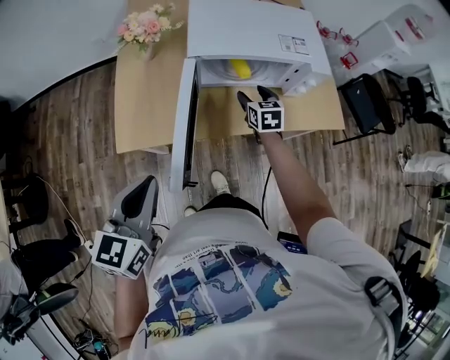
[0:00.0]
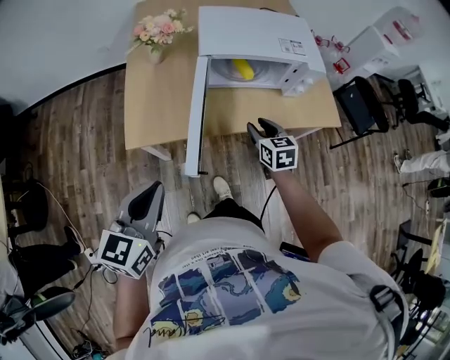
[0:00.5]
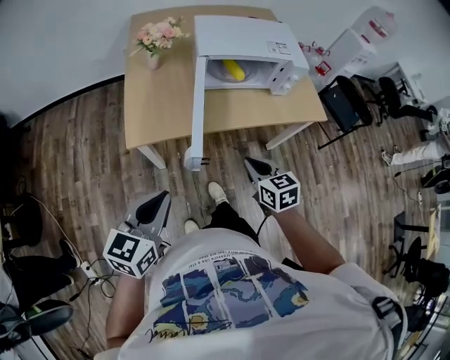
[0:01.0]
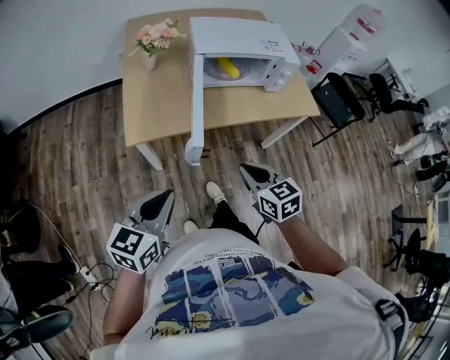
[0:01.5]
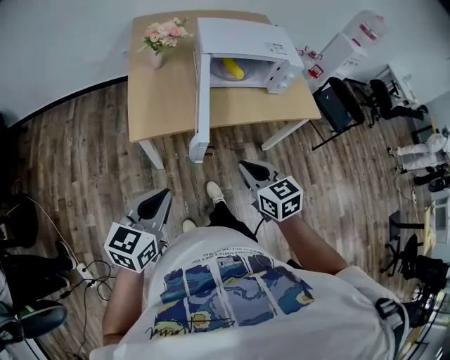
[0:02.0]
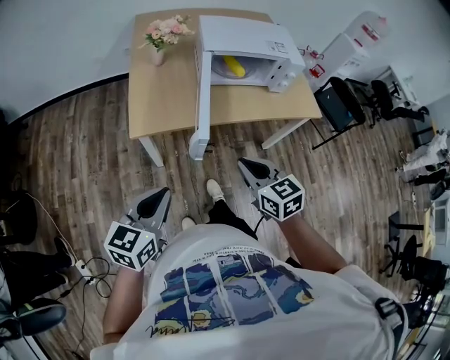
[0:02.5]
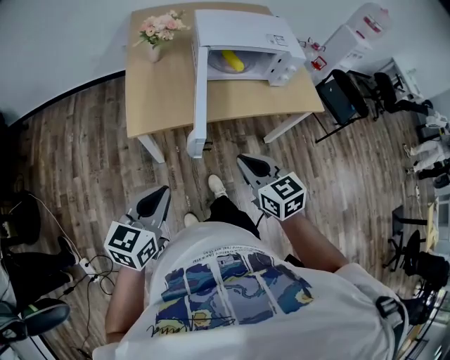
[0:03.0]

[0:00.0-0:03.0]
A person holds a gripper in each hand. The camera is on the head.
0:00.0 to 0:01.5: The right gripper travels backward by roughly 35 cm, and closes up. Meanwhile the left gripper moves backward, roughly 15 cm.
0:01.5 to 0:03.0: The grippers make only small movements.

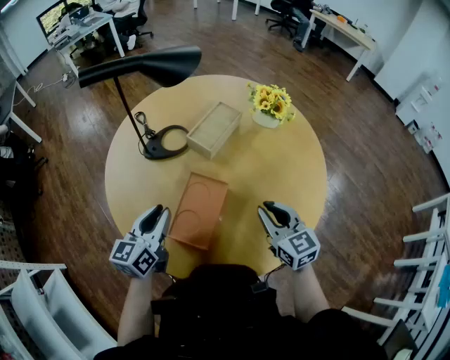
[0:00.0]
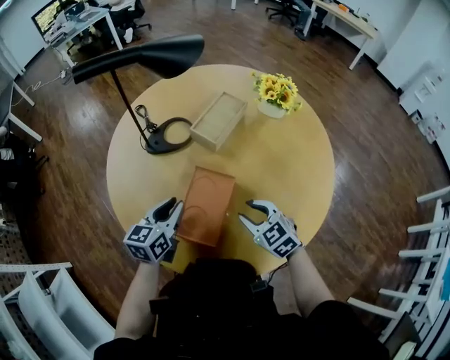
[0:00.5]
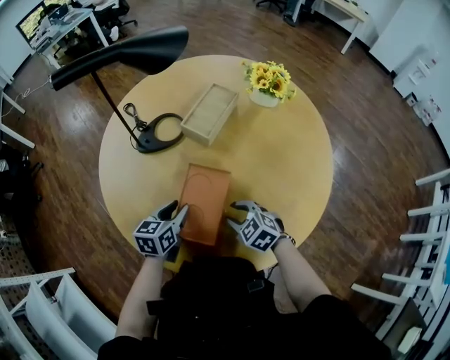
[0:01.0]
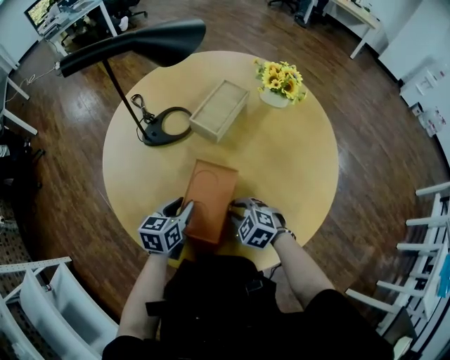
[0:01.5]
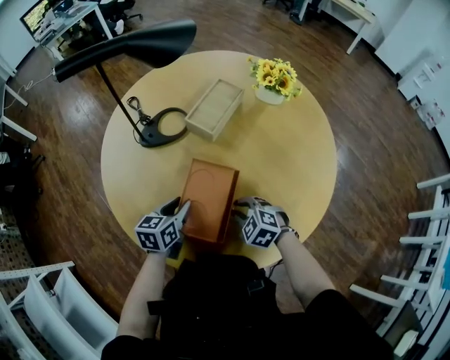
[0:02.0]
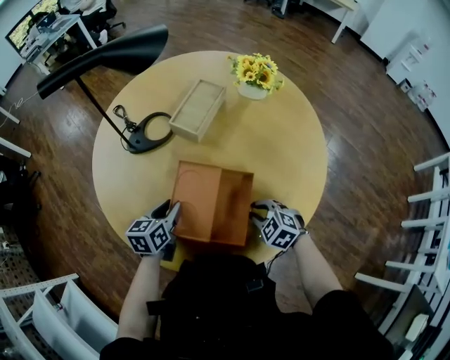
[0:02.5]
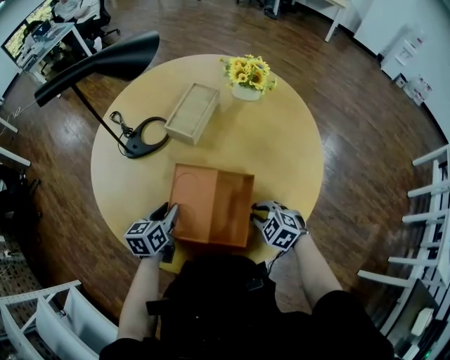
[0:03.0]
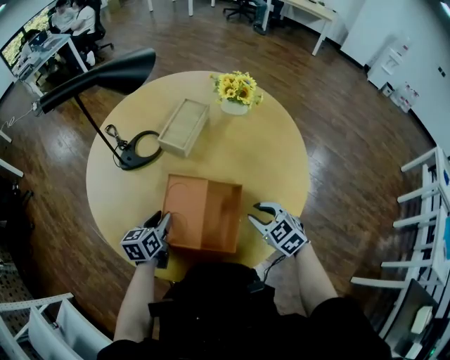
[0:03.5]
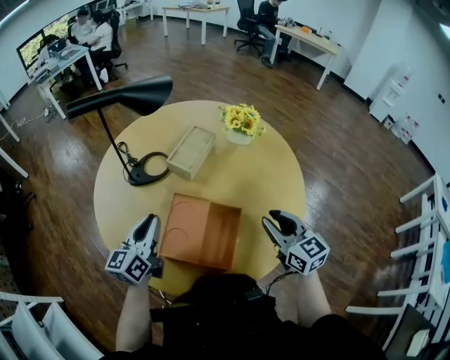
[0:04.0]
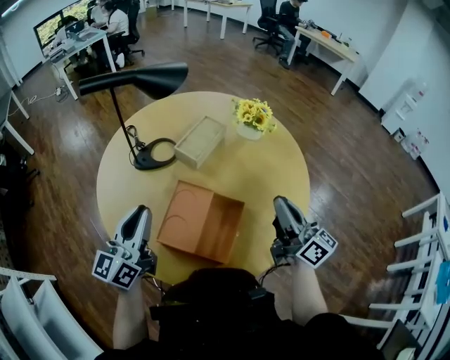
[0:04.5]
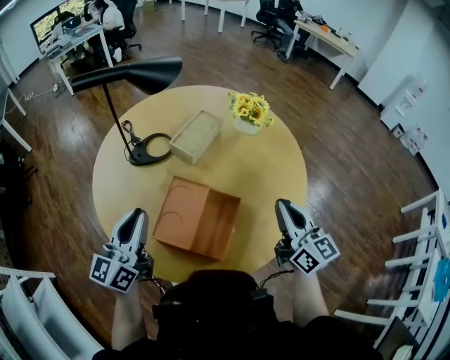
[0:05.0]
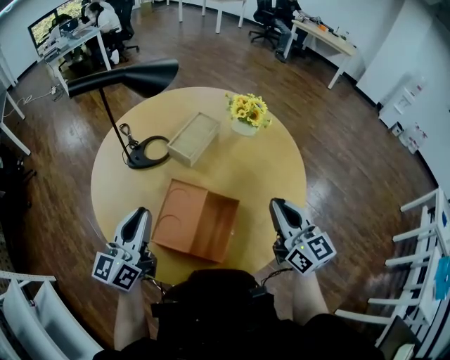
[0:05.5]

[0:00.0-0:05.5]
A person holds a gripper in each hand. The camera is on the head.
0:00.0 to 0:02.0: The left gripper travels downward by about 10 cm, and rotates approximately 20 degrees; the right gripper moves downward and to the left, roughly 20 cm, and tips its fingers downward by approximately 40 degrees.
0:02.0 to 0:03.5: The right gripper heads to the right and upward, covering roughly 15 cm, and swivels about 30 degrees.
0:03.5 to 0:05.5: The two grippers go roughly 20 cm upward. The right gripper tips its fingers upward by roughly 40 degrees, and closes up. The left gripper angles its fingers upward, by about 40 degrees, and closes its fingers.

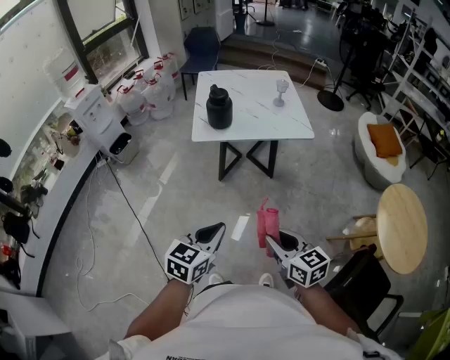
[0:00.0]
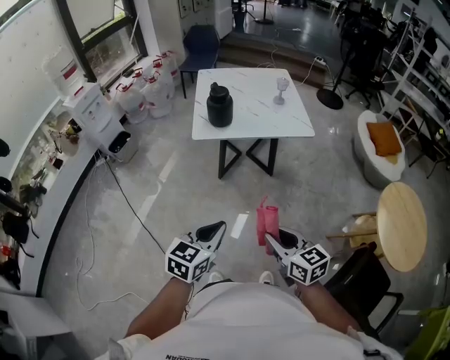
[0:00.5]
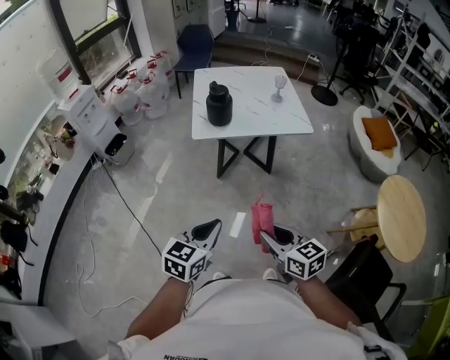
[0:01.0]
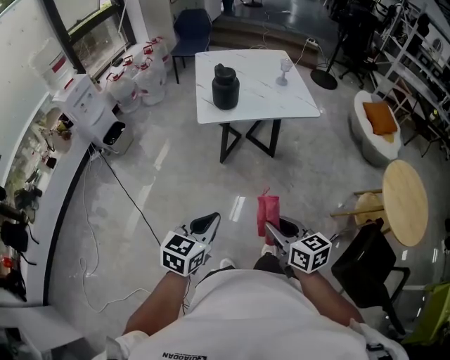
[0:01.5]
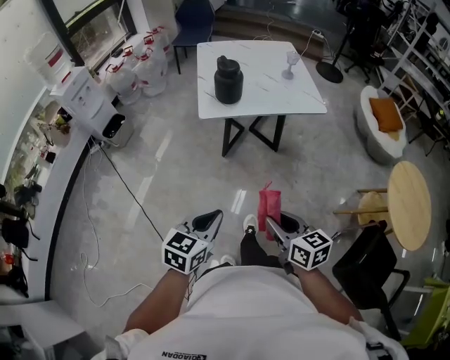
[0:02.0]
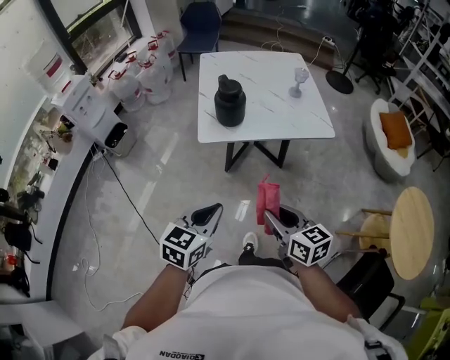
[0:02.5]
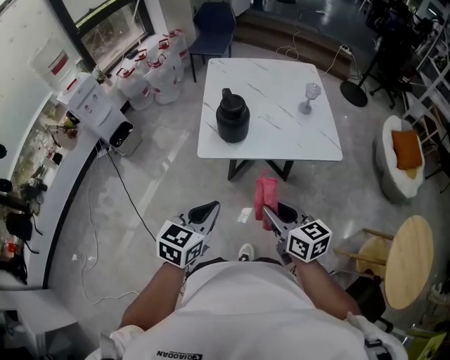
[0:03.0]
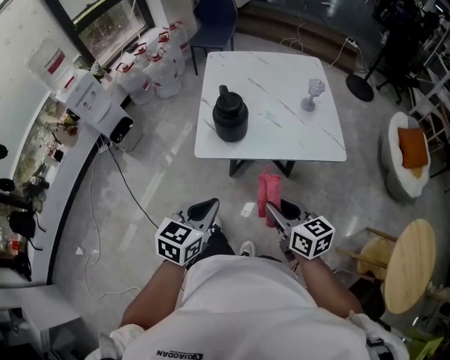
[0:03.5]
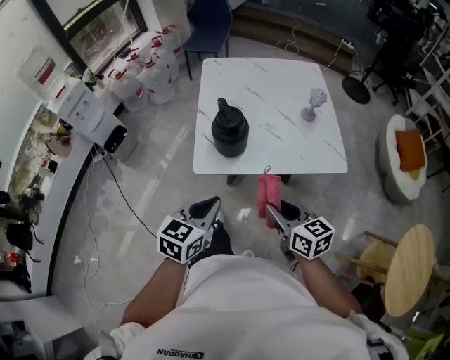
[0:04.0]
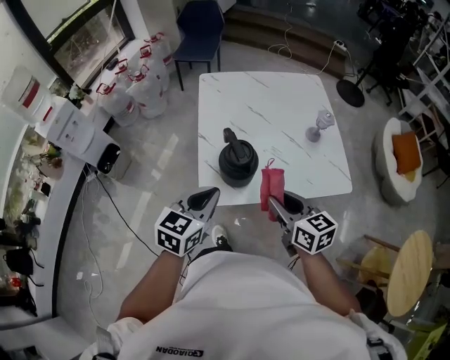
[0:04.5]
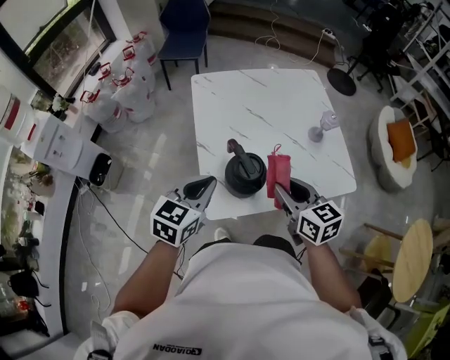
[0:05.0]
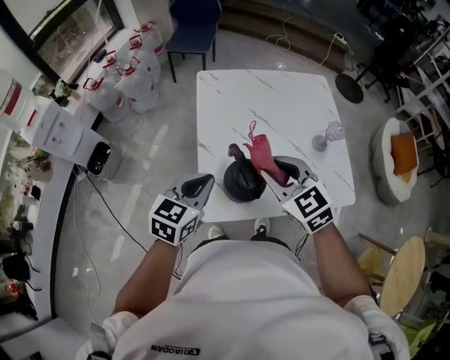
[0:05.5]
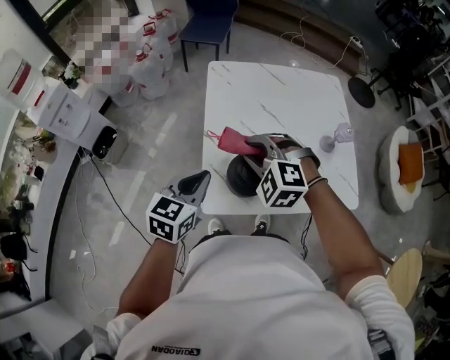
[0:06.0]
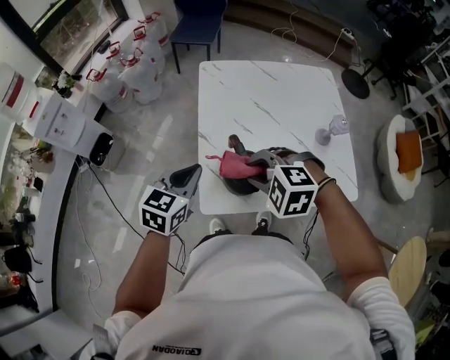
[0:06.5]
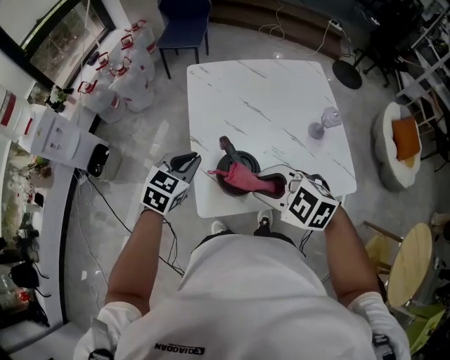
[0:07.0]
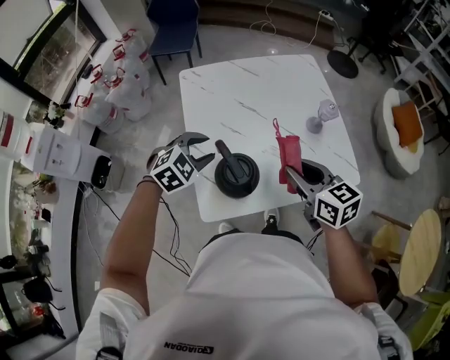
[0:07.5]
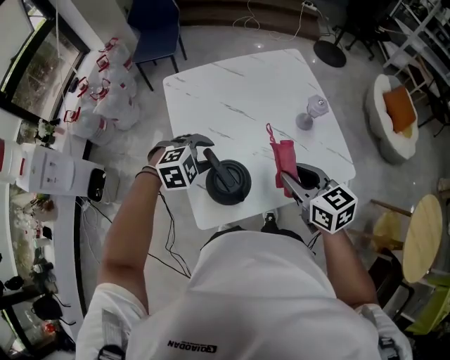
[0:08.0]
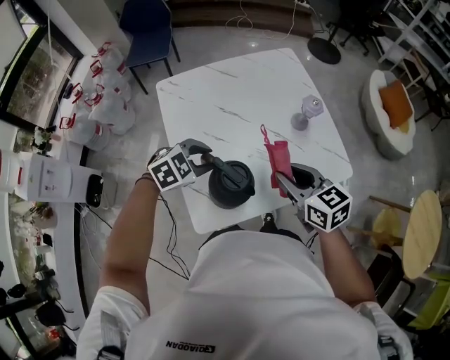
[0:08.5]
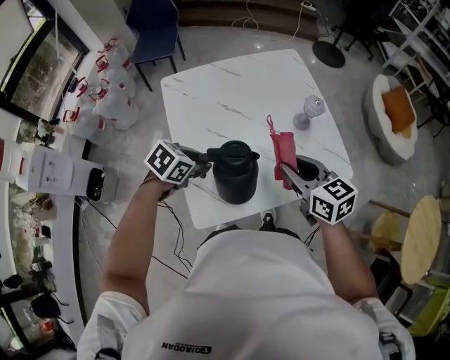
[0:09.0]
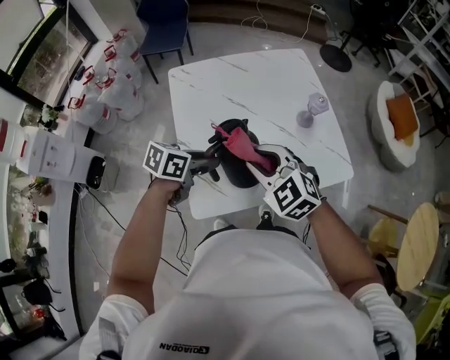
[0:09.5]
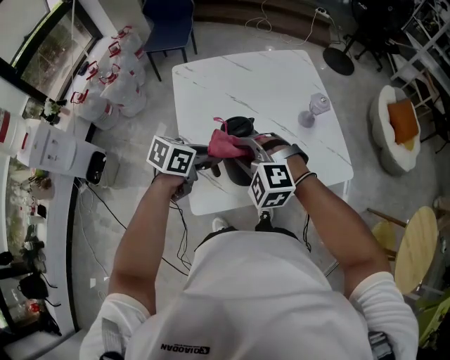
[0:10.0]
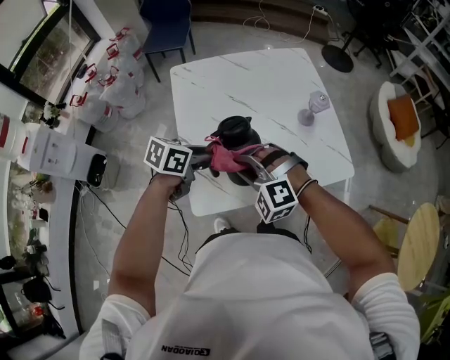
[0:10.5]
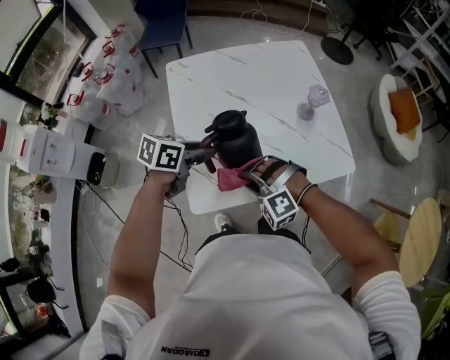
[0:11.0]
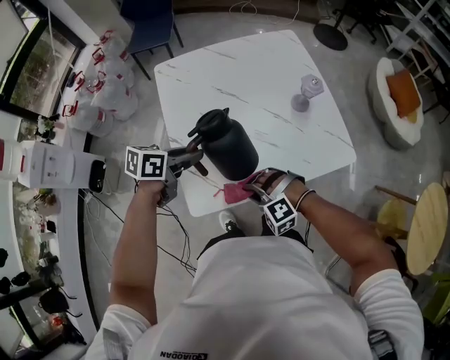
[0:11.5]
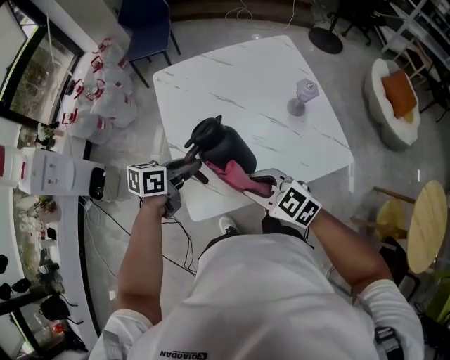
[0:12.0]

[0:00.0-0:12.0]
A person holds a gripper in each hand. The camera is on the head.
0:00.0 to 0:02.0: The two grippers go approximately 10 cm to the left.
0:02.0 to 0:04.0: The grippers both shift forward by some 35 cm.
0:04.0 to 0:06.0: The grippers both shift forward and to the left by some 30 cm. The right gripper rolls counterclockwise, seen from behind, by about 80 degrees.
0:06.0 to 0:08.0: The left gripper moves about 15 cm, rolls clockwise, seen from behind, by approximately 60 degrees, and opens its fingers; the right gripper ends up roughly 20 cm from where it was, and rolls clockwise, seen from behind, by approximately 80 degrees.
0:08.0 to 0:10.0: The left gripper shifts by about 5 cm, and rotates around the line of its fingers by roughly 70 degrees, counterclockwise from behind; the right gripper moves to the left, roughly 15 cm, and twists approximately 70 degrees counterclockwise, seen from behind.
0:10.0 to 0:12.0: The right gripper heads to the right and backward, covering about 10 cm, reaches roughly 15 cm downward, then returns, and rotates around the line of its fingers by about 50 degrees, clockwise from behind.

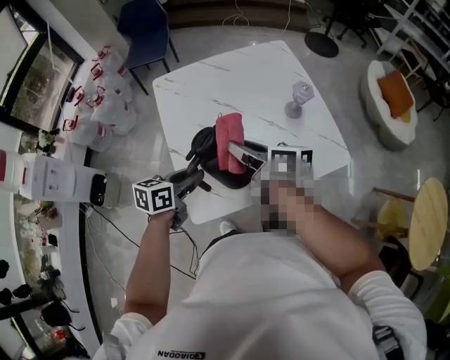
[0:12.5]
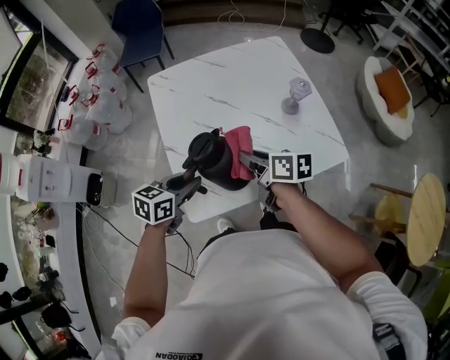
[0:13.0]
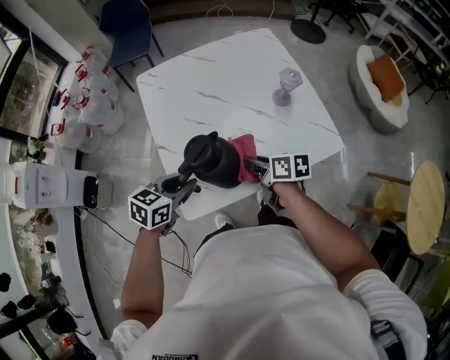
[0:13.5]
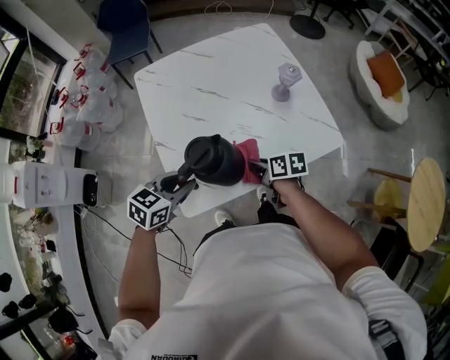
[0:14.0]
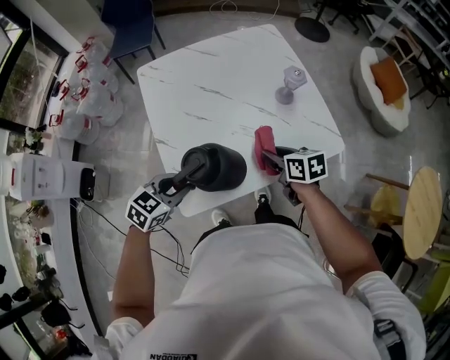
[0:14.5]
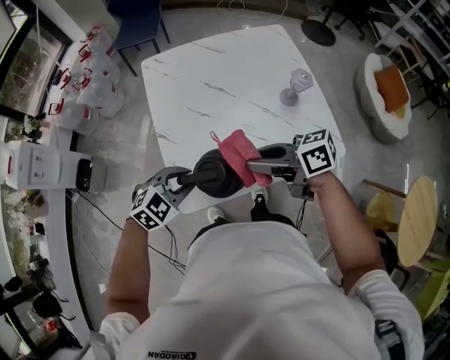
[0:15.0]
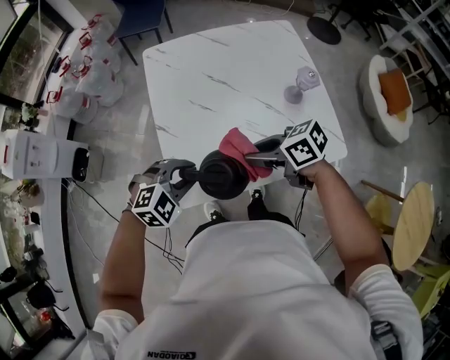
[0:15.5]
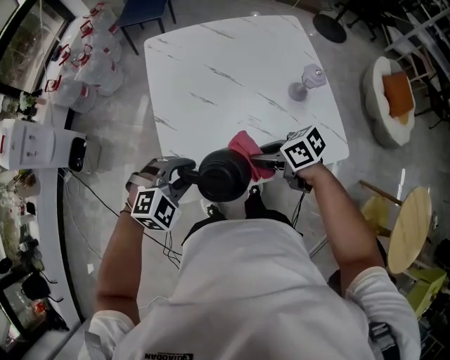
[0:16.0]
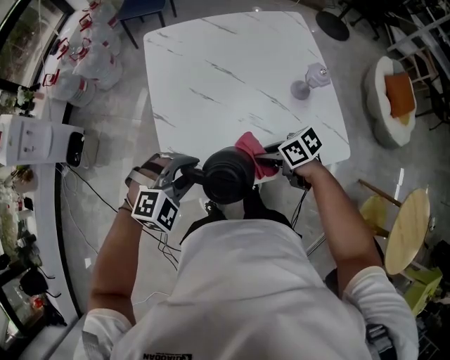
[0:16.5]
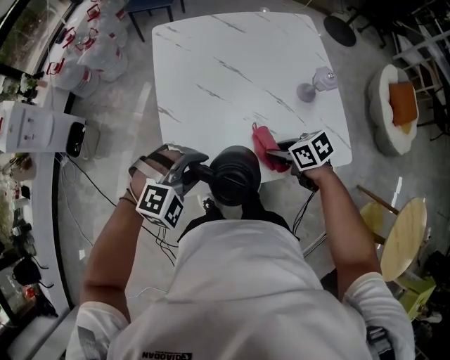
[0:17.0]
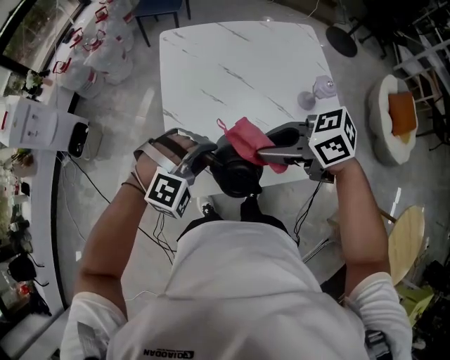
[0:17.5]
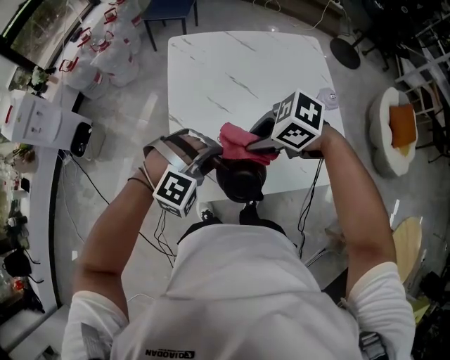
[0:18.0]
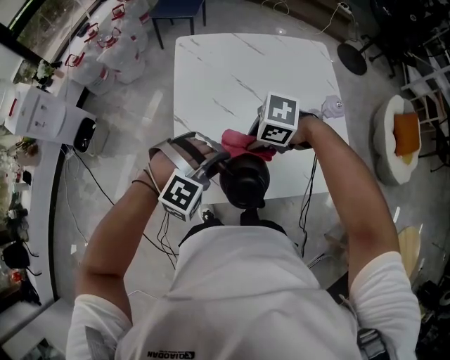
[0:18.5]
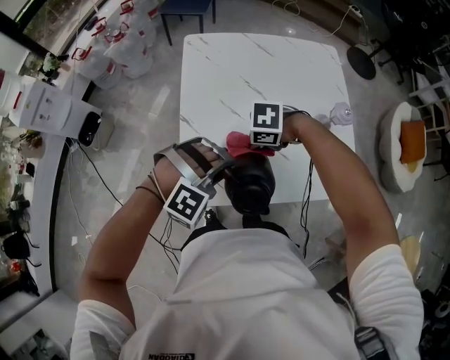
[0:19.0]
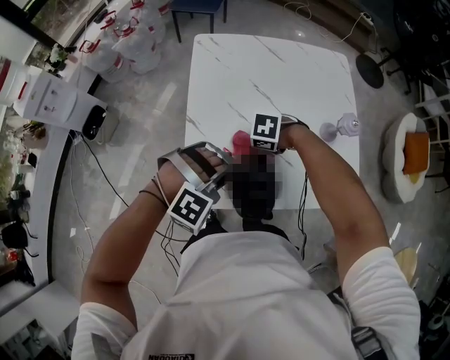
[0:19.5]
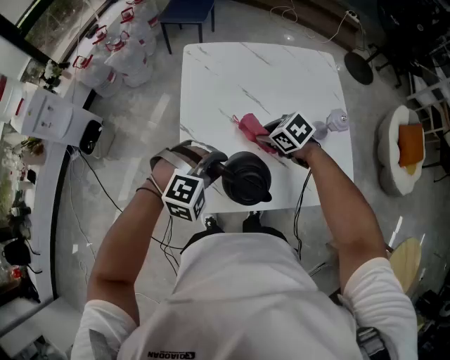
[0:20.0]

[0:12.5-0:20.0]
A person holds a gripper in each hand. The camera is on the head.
0:12.5 to 0:14.5: The right gripper heads downward and to the right, covering roughly 20 cm, and turns by about 30 degrees, while the left gripper goes some 5 cm backward, and rotates roughly 40 degrees.
0:14.5 to 0:16.5: The left gripper twists approximately 40 degrees clockwise, seen from behind, while the right gripper travels upward and back again, about 10 cm each way, and swivels roughly 40 degrees.
0:16.5 to 0:18.0: The right gripper is displaced upward by some 15 cm, and swivels some 40 degrees, while the left gripper ends up about 5 cm from where it was, and swivels about 20 degrees.
0:18.0 to 0:20.0: The right gripper is displaced downward by roughly 10 cm, and rotates about 20 degrees.
